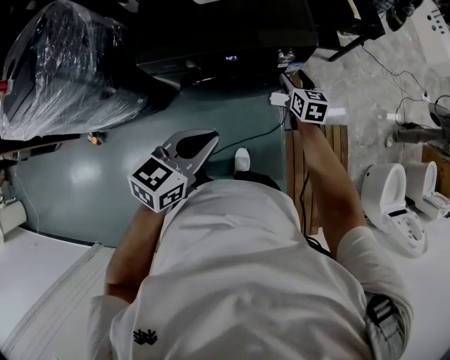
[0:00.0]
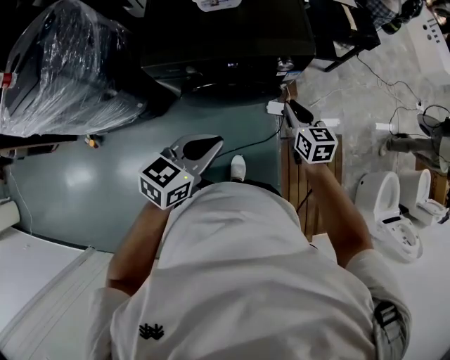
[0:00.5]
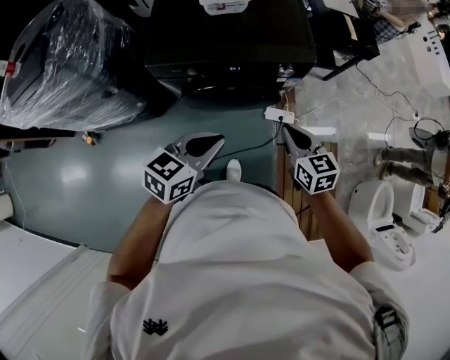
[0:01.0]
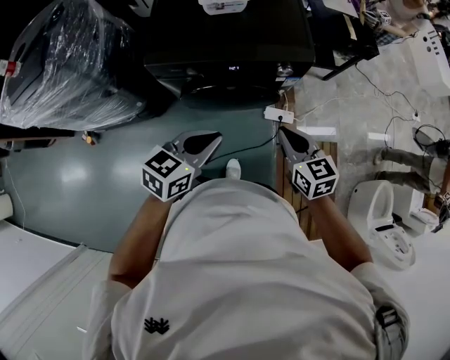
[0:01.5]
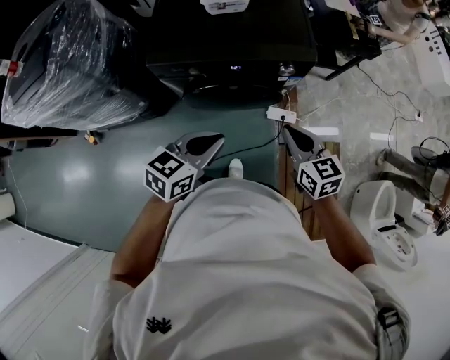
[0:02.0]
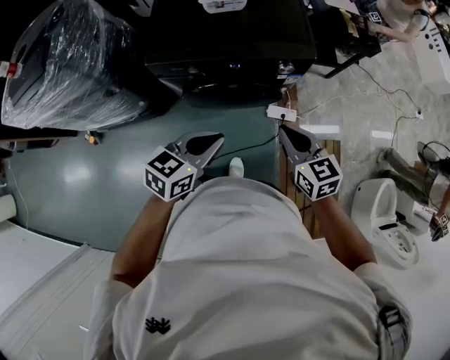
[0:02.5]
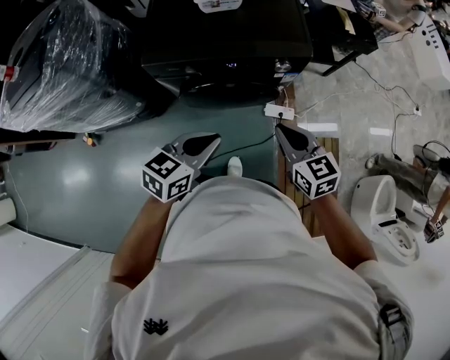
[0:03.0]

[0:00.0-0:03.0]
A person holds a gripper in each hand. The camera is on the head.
0.0 to 1.5 s: The right gripper heads backward and upward, covering approximately 20 cm, turns by roughly 20 degrees, and closes up.
1.5 to 3.0 s: The grippers make only small movements.

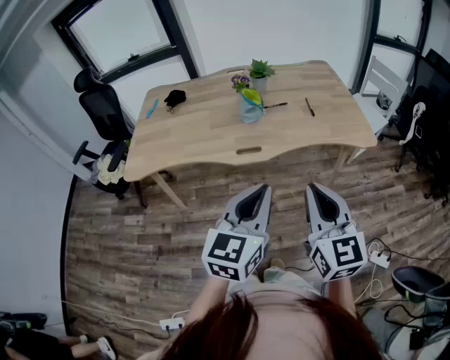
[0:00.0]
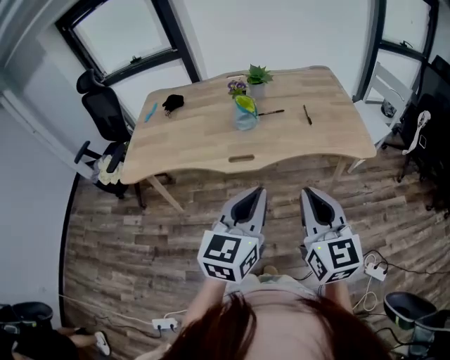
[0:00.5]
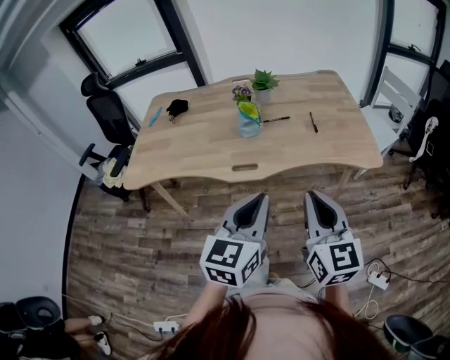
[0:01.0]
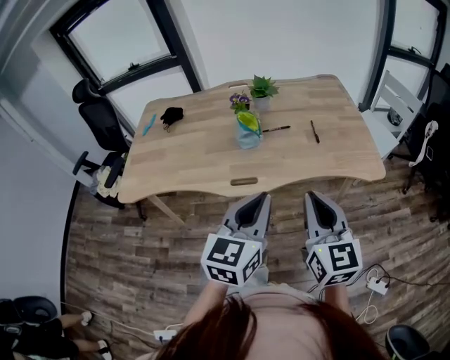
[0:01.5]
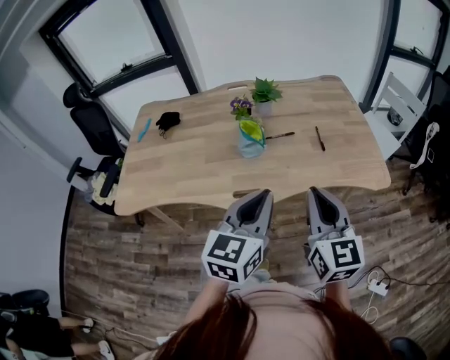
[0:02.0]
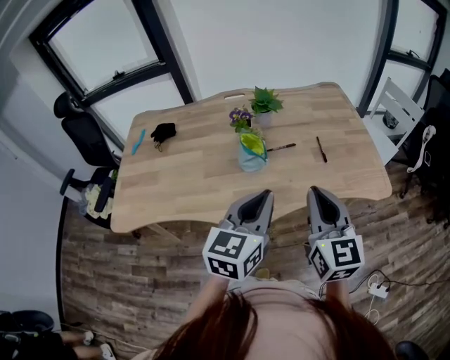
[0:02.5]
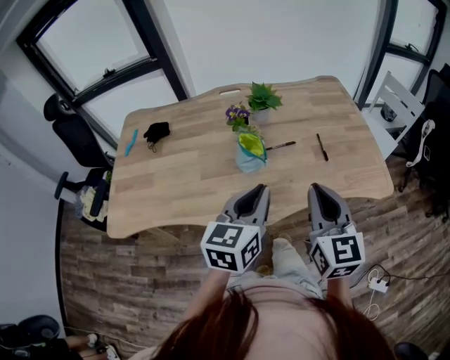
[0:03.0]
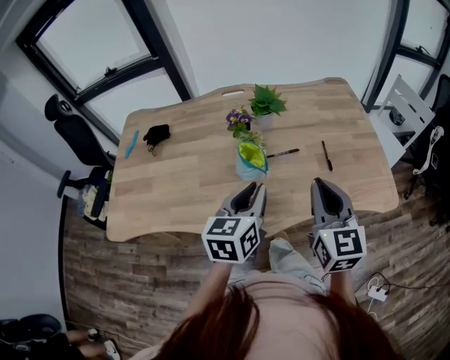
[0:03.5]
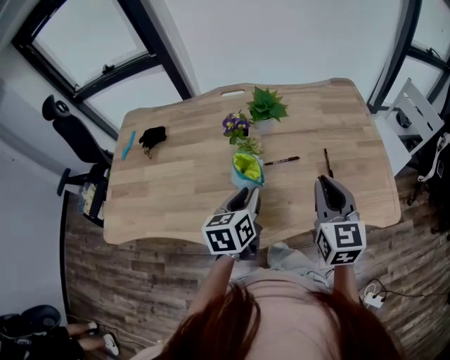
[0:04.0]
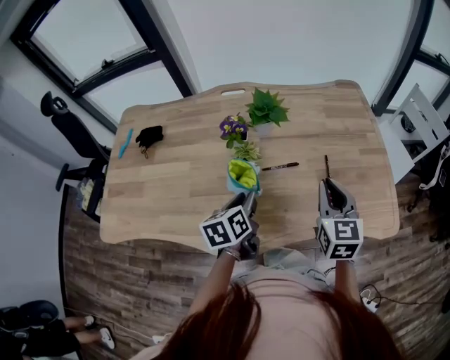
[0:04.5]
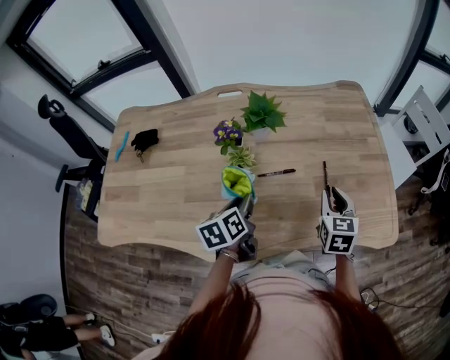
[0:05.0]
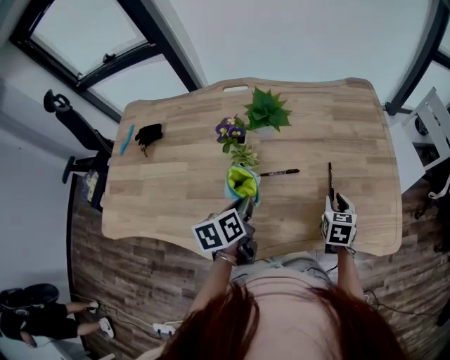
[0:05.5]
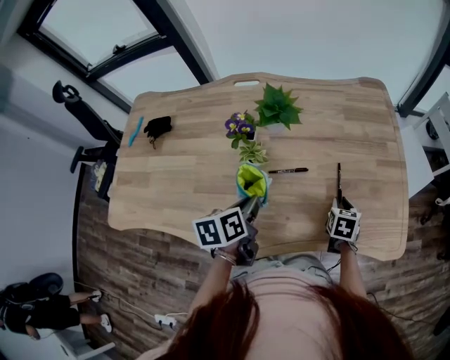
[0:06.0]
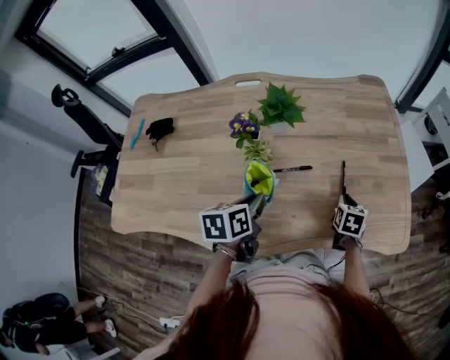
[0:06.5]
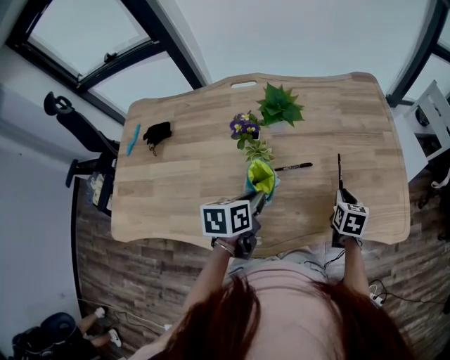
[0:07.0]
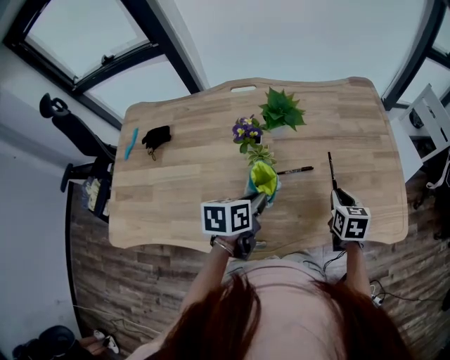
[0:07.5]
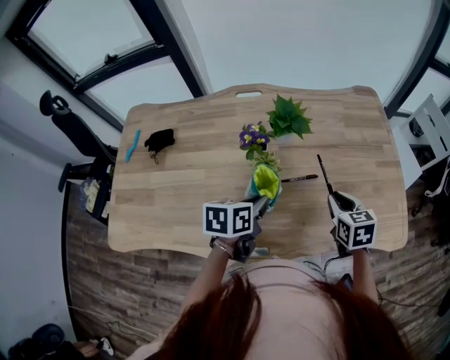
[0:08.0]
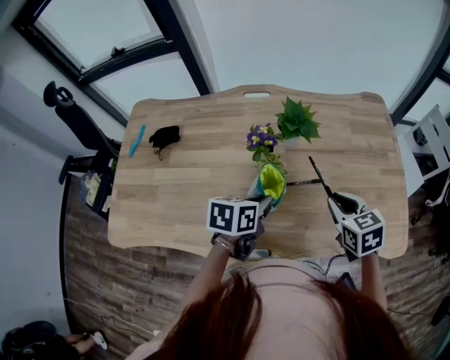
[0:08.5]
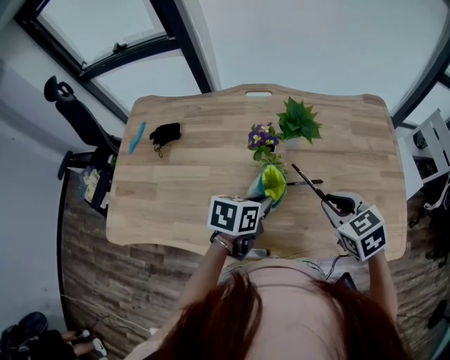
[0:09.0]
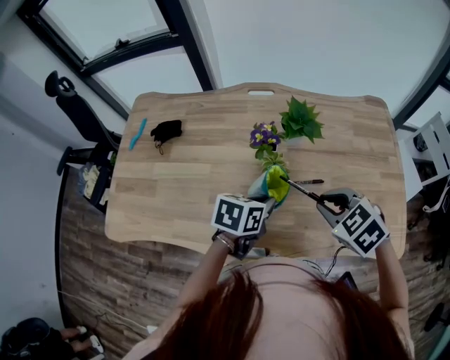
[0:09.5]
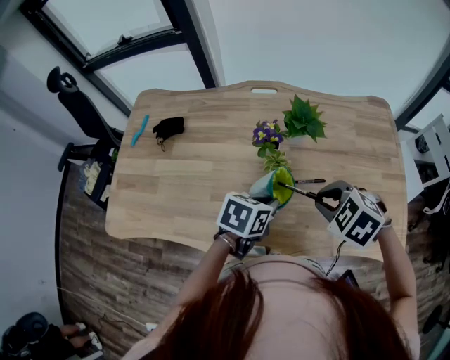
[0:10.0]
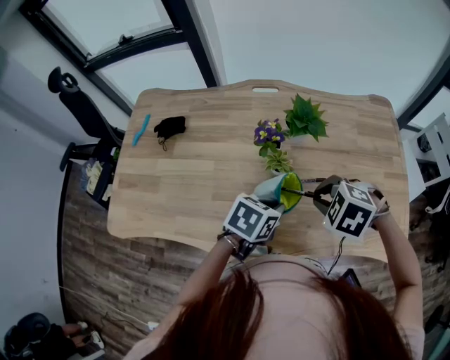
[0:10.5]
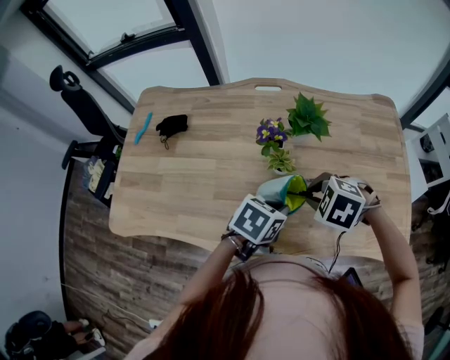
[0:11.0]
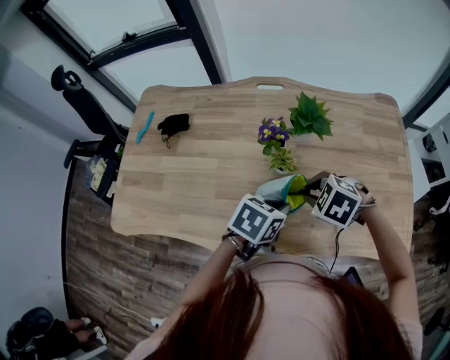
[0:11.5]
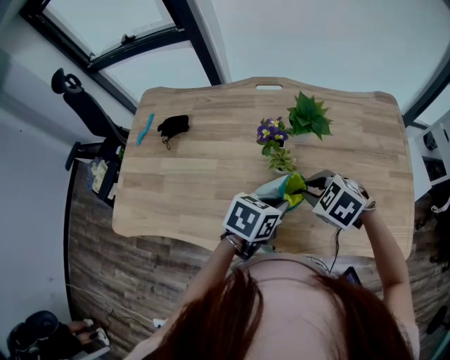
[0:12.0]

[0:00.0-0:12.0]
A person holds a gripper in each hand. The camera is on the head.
0.0 to 2.0 s: Both grippers move forward, approximately 20 cm.
2.0 to 4.0 s: The left gripper moves forward and downward, approximately 25 cm, swivels approximately 30 degrees, and opens its fingers; the right gripper moves forward, about 25 cm.
4.0 to 6.0 s: The right gripper shifts some 30 cm downward and to the right, angles its fingers downward, by roughly 40 degrees, and opens up, while the left gripper goes some 5 cm downward, changes its angle by about 20 degrees, and closes its fingers.
6.0 to 8.0 s: The left gripper swivels some 20 degrees; the right gripper heads upward and to the left, covering approximately 20 cm.
8.0 to 10.0 s: The right gripper moves to the left and upward, roughly 15 cm, and twists about 50 degrees counterclockwise, seen from behind.
10.0 to 12.0 s: The right gripper shifts by some 5 cm.

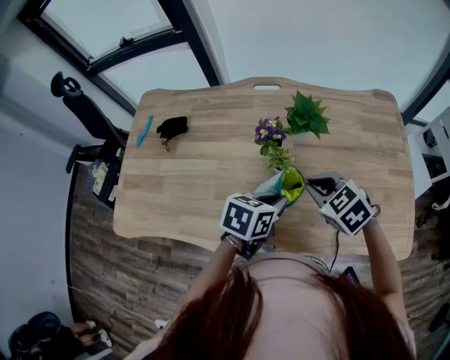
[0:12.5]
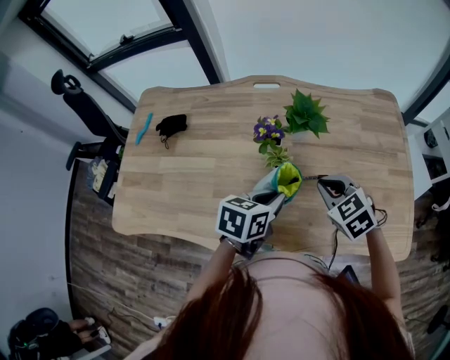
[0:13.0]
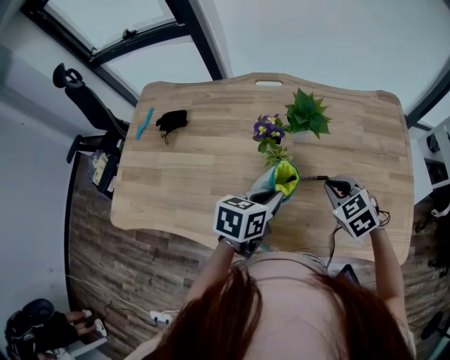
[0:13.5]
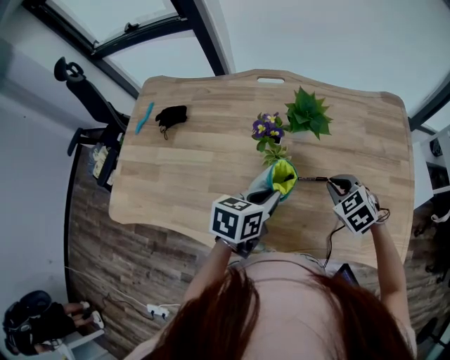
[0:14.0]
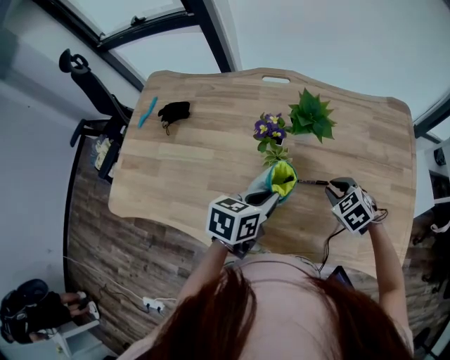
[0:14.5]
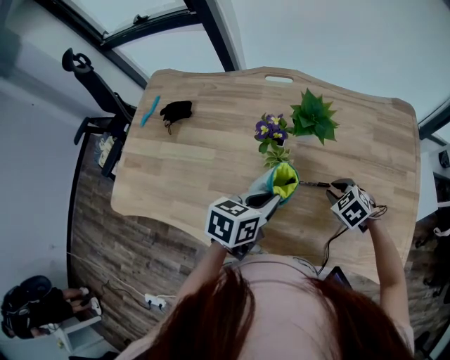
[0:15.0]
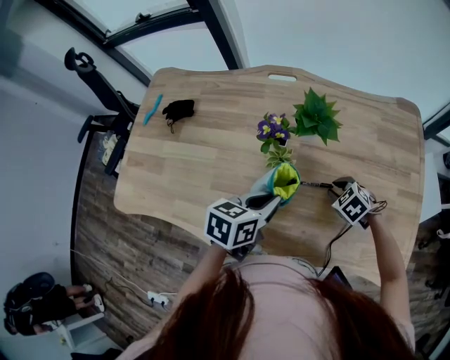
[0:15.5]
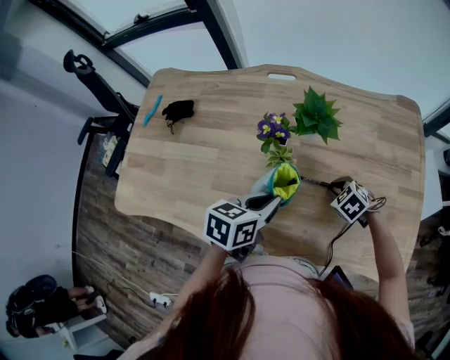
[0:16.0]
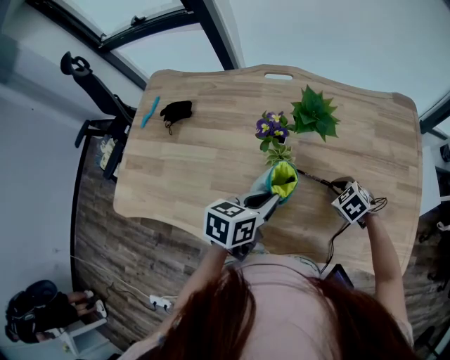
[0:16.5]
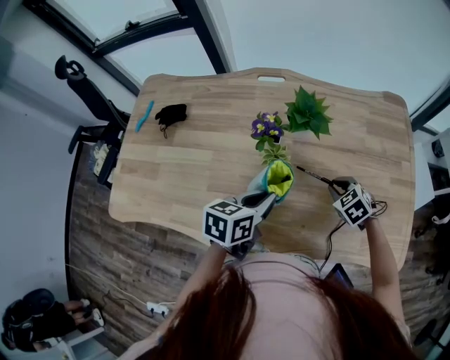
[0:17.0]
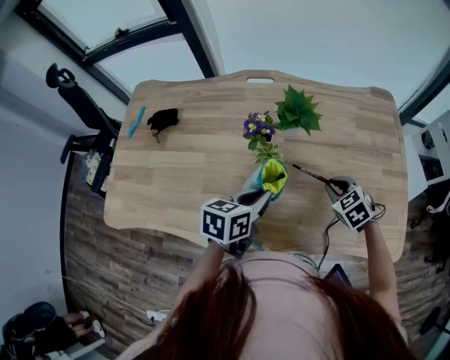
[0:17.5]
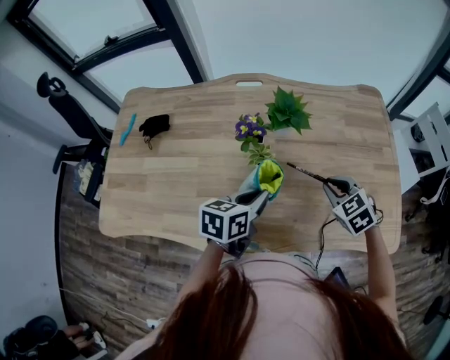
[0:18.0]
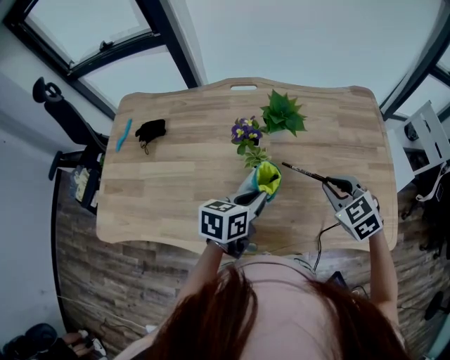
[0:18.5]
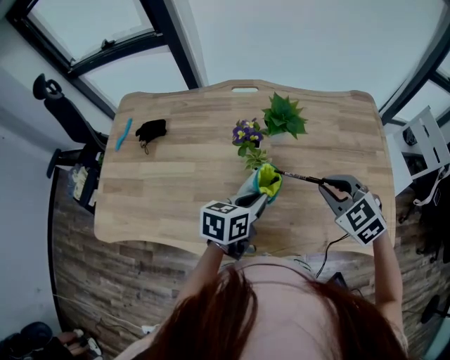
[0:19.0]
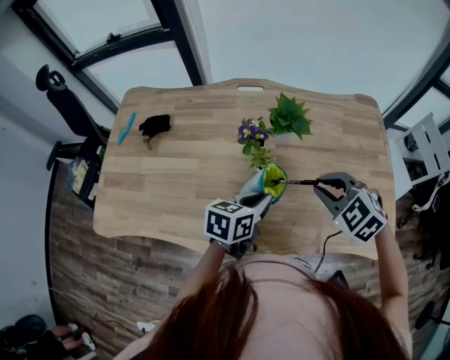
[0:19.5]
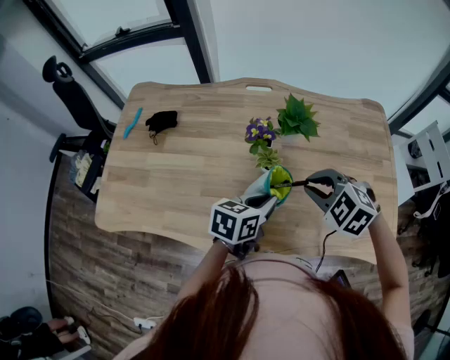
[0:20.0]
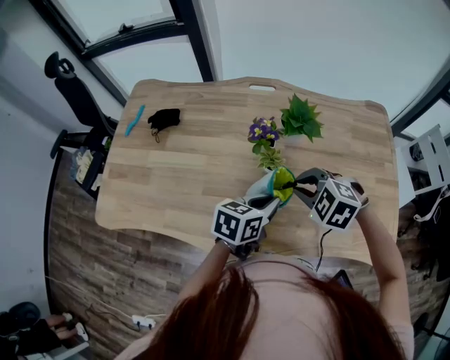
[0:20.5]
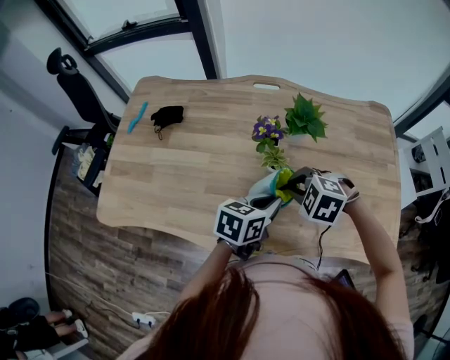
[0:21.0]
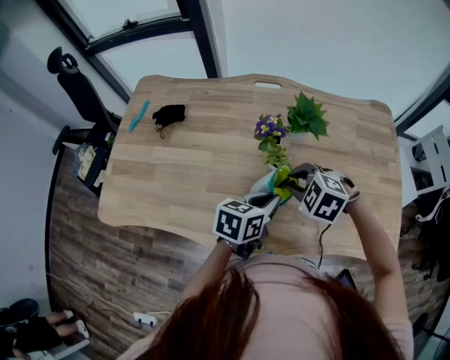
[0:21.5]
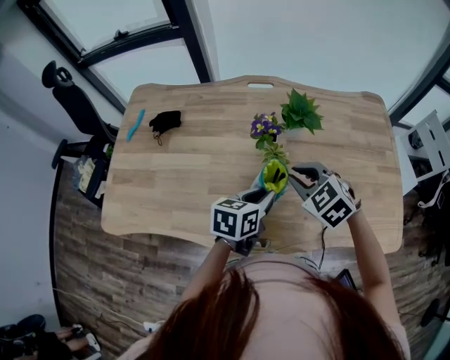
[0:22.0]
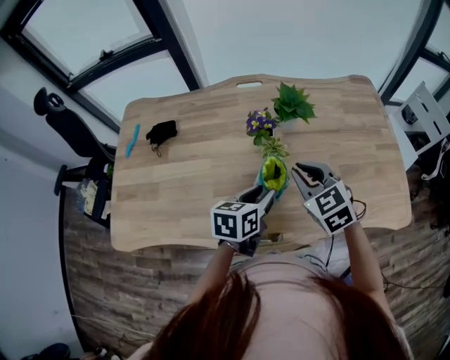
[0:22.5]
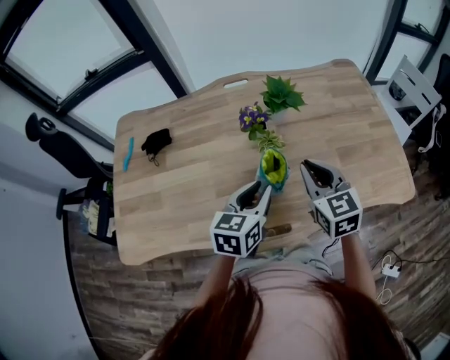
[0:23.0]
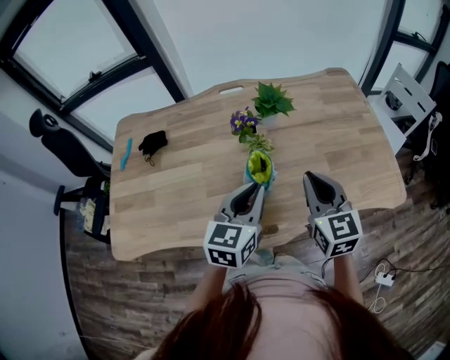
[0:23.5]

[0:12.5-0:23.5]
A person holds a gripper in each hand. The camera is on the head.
12.5 to 14.5 s: The right gripper goes roughly 15 cm downward and to the right.
14.5 to 16.0 s: The right gripper moves downward, some 10 cm.
16.0 to 18.0 s: The right gripper travels upward by some 15 cm, and turns by roughly 20 degrees.
18.0 to 20.0 s: The right gripper shifts approximately 15 cm to the left and upward, and turns by approximately 30 degrees.
20.0 to 21.5 s: The right gripper shifts about 10 cm to the left and downward.
21.5 to 23.5 s: The right gripper shifts about 15 cm upward, backward and to the right, and tips its fingers upward by approximately 50 degrees. Meanwhile the left gripper shifts approximately 10 cm upward and backward, rotates some 30 degrees, and opens and closes again.

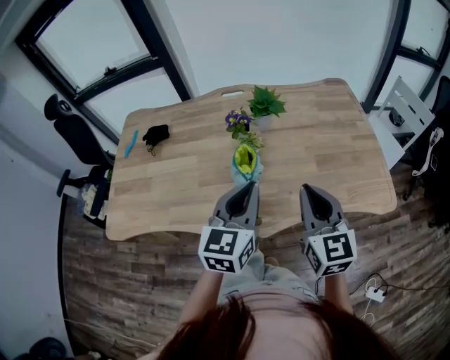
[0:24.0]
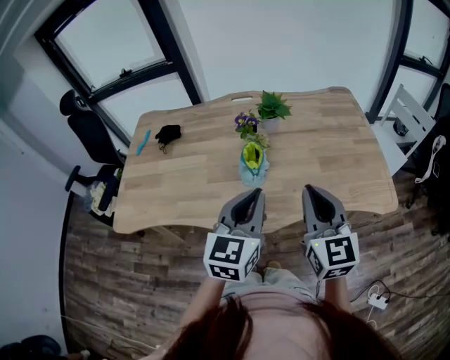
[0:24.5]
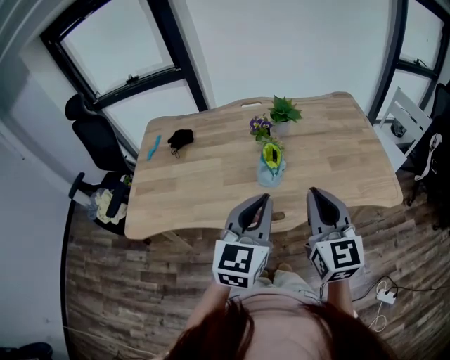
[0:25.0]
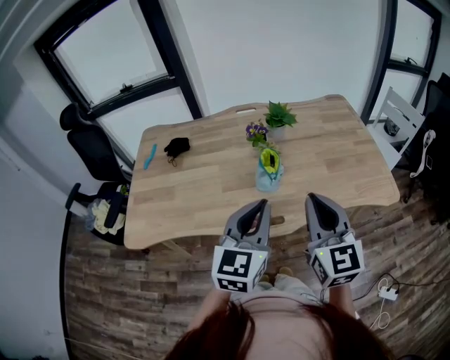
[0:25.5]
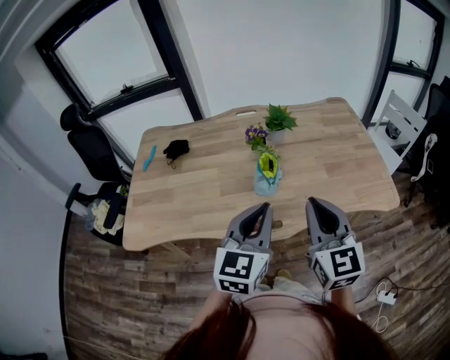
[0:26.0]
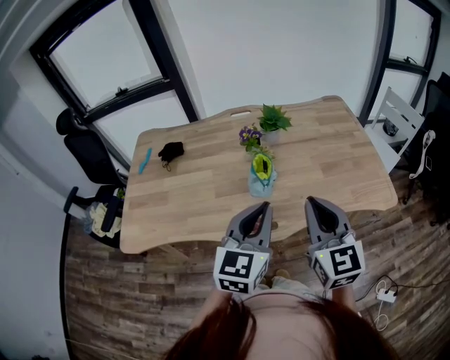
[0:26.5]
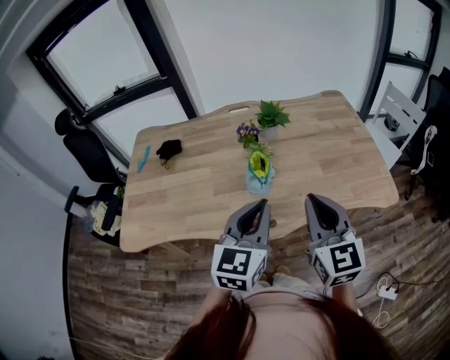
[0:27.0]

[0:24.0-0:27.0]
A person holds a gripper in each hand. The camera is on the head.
24.0 to 25.5 s: The right gripper goes approximately 15 cm backward, to the left and upward, while the left gripper goes approximately 10 cm backward and to the left.
25.5 to 27.0 s: The left gripper changes place by roughly 5 cm.
